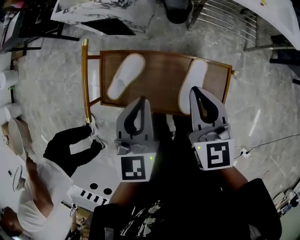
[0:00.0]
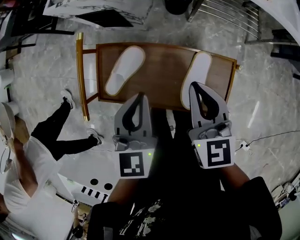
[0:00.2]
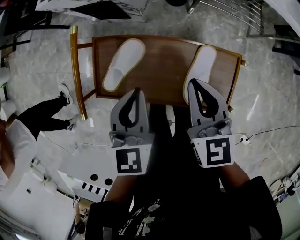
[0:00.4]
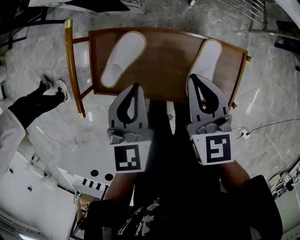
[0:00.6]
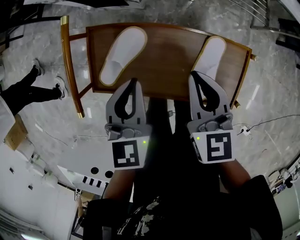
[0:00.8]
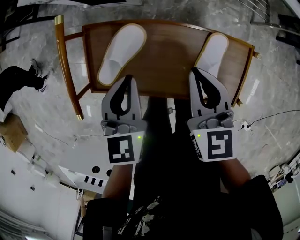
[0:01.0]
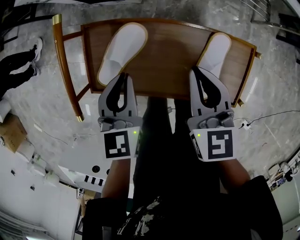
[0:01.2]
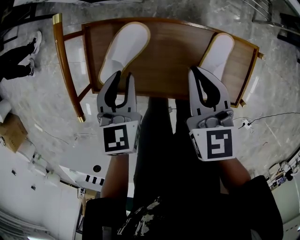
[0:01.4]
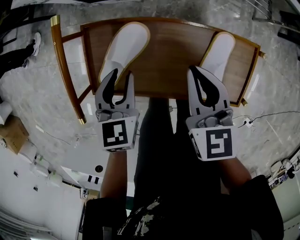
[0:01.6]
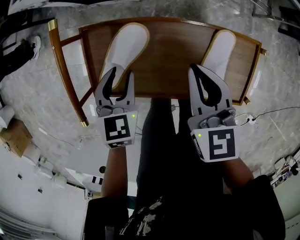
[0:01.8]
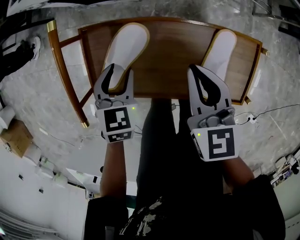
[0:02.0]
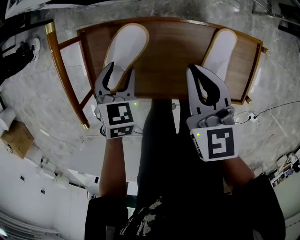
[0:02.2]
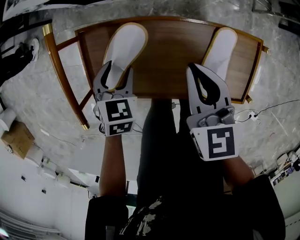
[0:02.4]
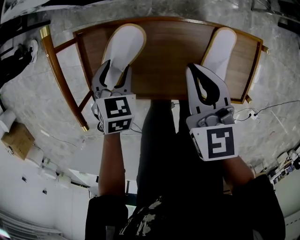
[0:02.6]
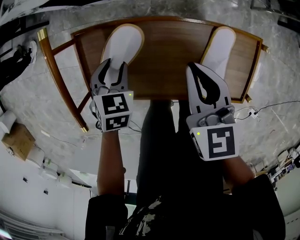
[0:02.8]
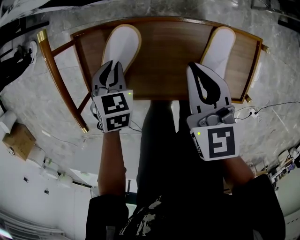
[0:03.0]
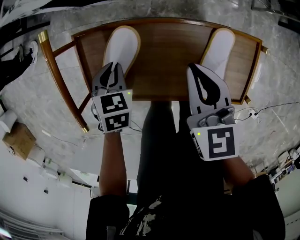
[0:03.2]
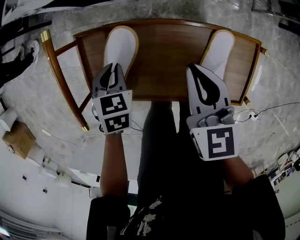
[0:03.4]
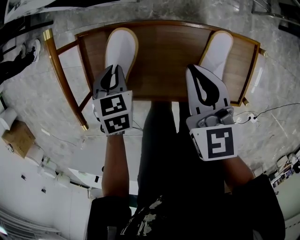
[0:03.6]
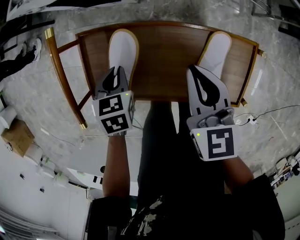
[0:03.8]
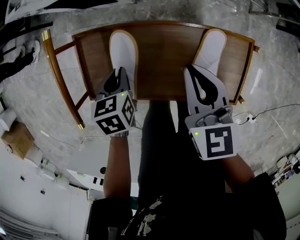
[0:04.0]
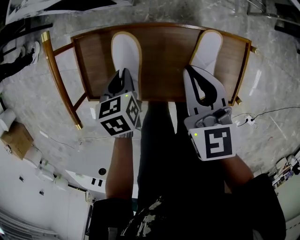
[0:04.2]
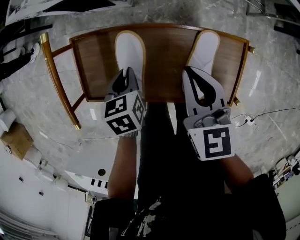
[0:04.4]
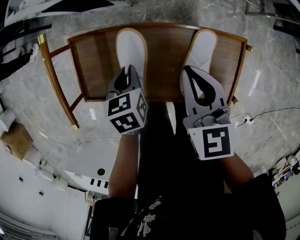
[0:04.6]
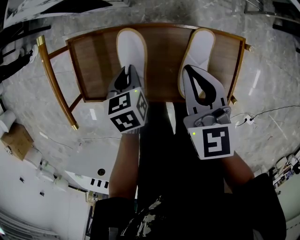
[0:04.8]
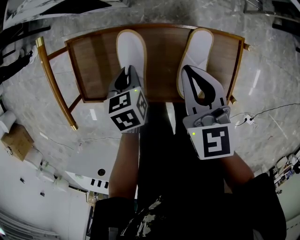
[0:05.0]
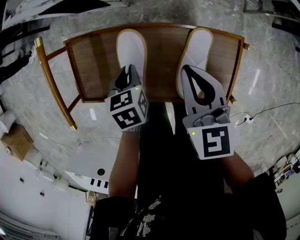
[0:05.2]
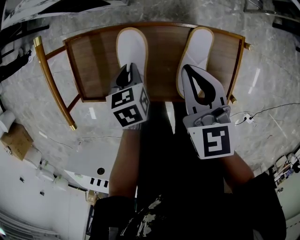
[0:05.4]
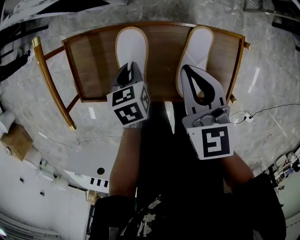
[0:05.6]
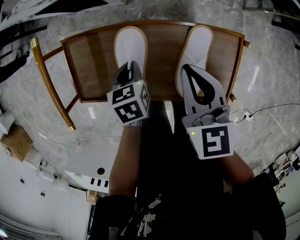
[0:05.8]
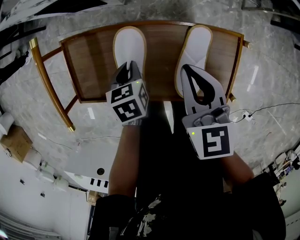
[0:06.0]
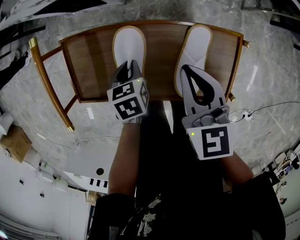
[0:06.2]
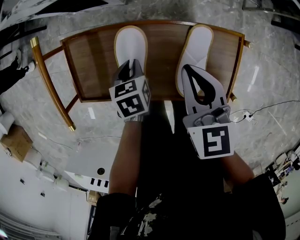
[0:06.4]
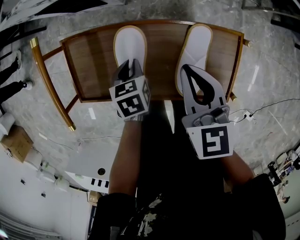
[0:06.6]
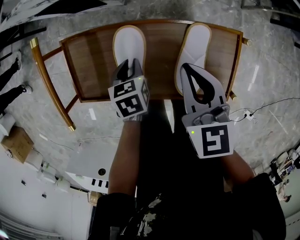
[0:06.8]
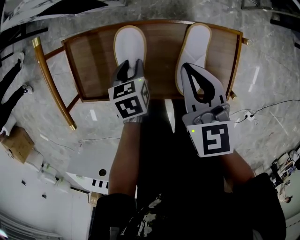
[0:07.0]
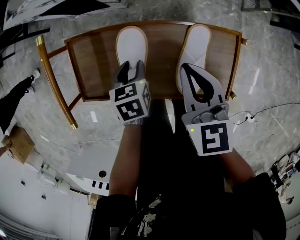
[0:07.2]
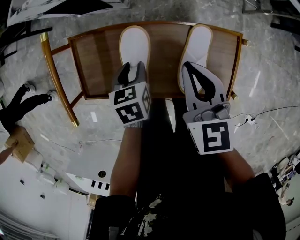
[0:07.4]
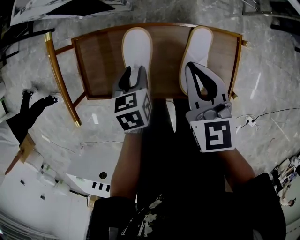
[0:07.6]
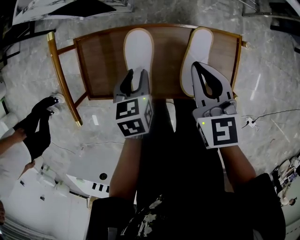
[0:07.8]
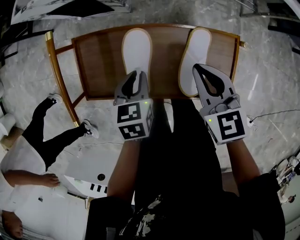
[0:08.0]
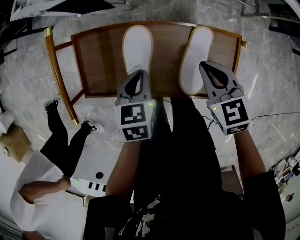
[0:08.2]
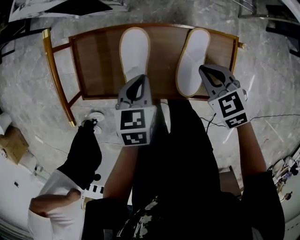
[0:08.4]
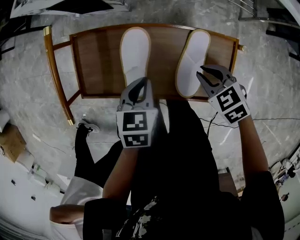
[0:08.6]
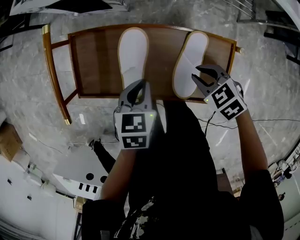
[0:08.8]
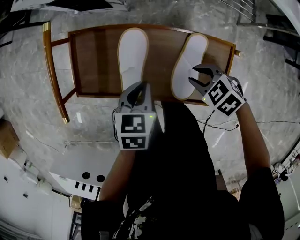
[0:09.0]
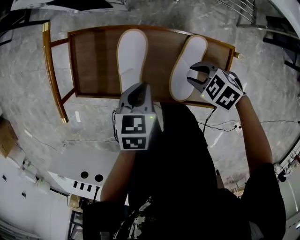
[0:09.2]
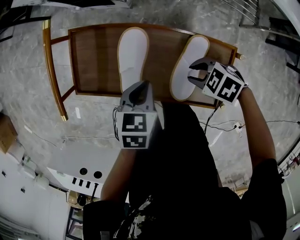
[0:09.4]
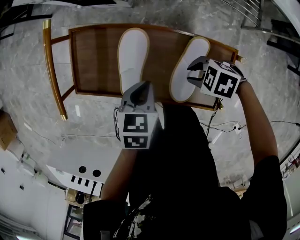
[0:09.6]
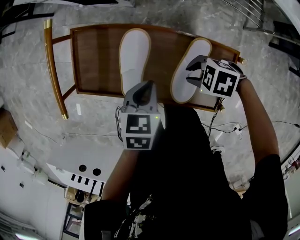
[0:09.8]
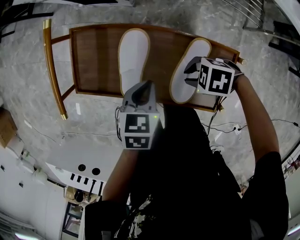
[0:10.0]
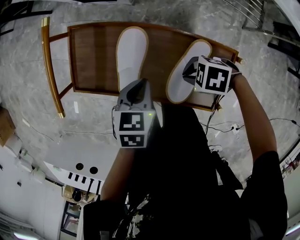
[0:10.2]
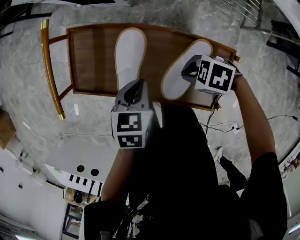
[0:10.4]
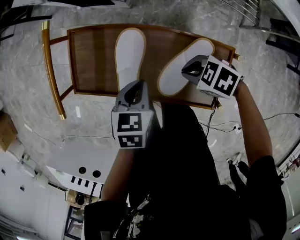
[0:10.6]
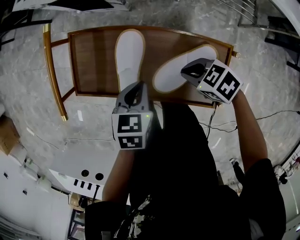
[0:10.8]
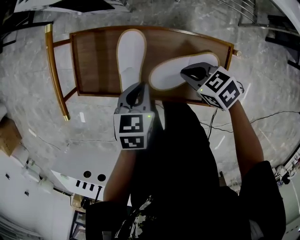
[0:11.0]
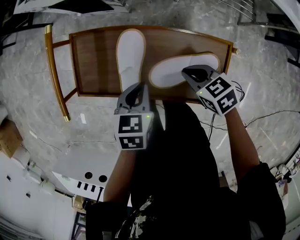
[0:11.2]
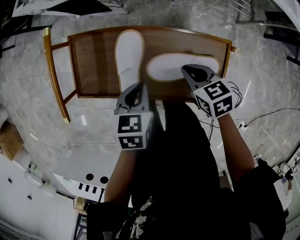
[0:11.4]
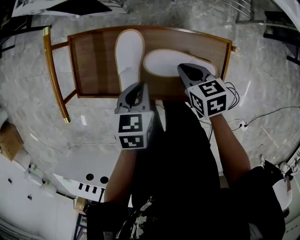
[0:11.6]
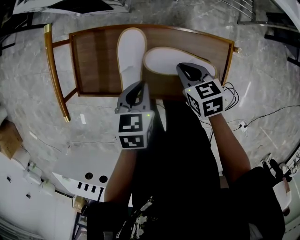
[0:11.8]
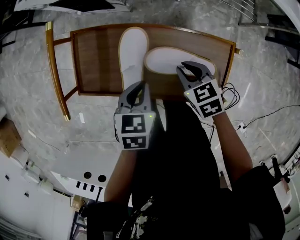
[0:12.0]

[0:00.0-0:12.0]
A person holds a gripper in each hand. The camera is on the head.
0:00.0 to 0:01.6: The right gripper moves downward and to the left, roughly 15 cm. The left gripper travels downward and to the left by some 20 cm, changes its angle by roughly 20 degrees, and opens up.
0:01.6 to 0:03.0: The left gripper moves downward, some 10 cm, swivels about 20 degrees, and closes its fingers.
0:03.0 to 0:04.4: The left gripper is displaced to the right by approximately 5 cm, and swivels roughly 30 degrees.
0:04.4 to 0:06.0: The left gripper ends up approximately 5 cm from where it was.
0:06.0 to 0:07.6: The left gripper opens up.
0:07.6 to 0:09.0: The left gripper changes place by roughly 5 cm, and closes. The right gripper moves downward, some 15 cm, angles its fingers downward, by about 30 degrees, and opens its fingers.
0:09.0 to 0:10.4: The right gripper rotates approximately 30 degrees, and closes.
0:10.4 to 0:12.0: The right gripper changes its angle by approximately 60 degrees.

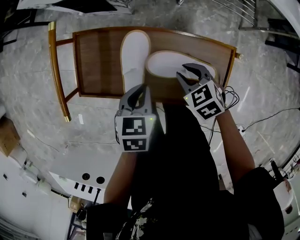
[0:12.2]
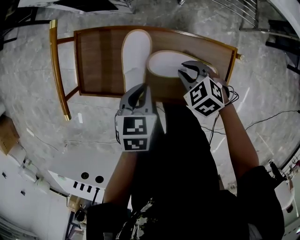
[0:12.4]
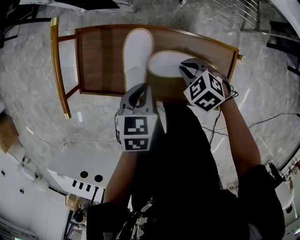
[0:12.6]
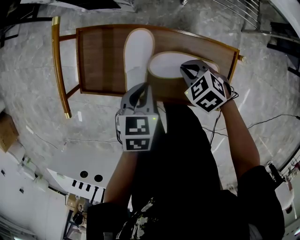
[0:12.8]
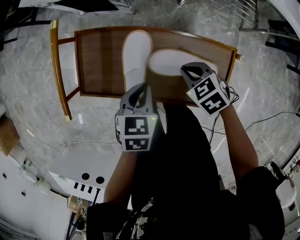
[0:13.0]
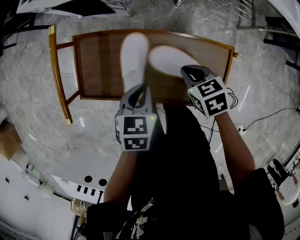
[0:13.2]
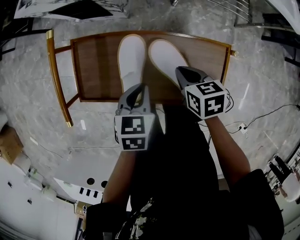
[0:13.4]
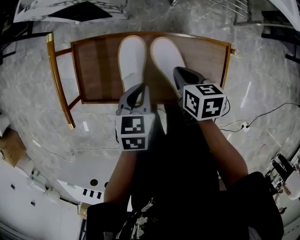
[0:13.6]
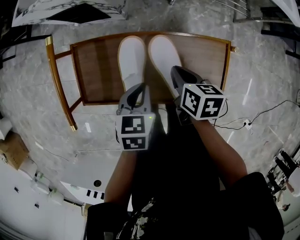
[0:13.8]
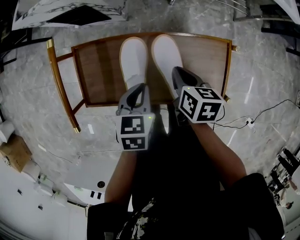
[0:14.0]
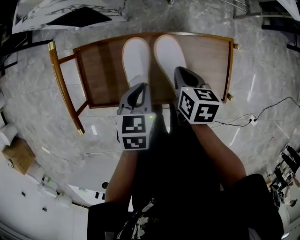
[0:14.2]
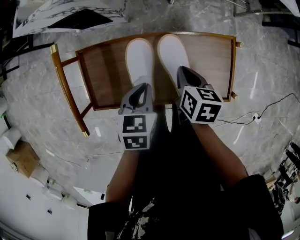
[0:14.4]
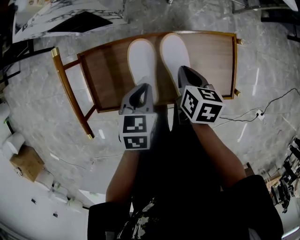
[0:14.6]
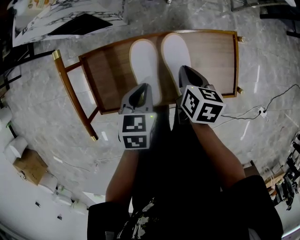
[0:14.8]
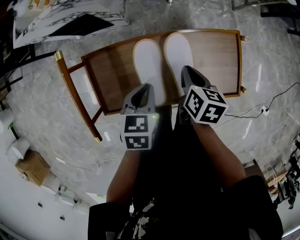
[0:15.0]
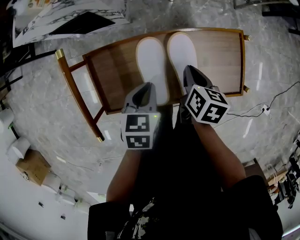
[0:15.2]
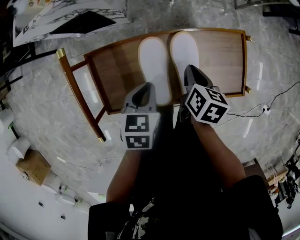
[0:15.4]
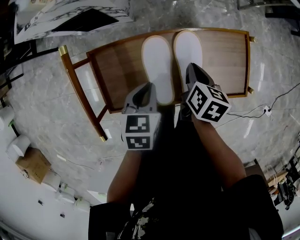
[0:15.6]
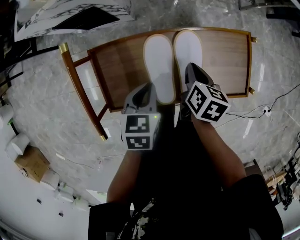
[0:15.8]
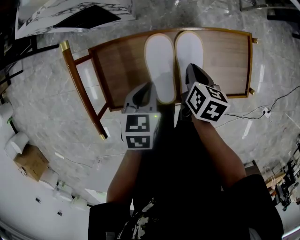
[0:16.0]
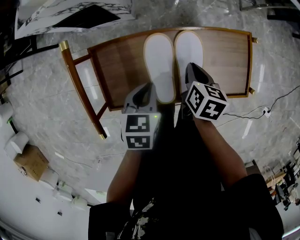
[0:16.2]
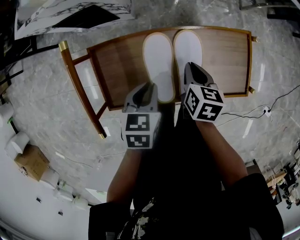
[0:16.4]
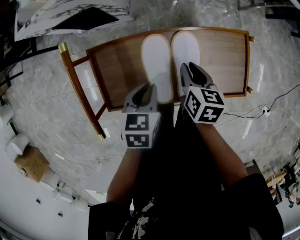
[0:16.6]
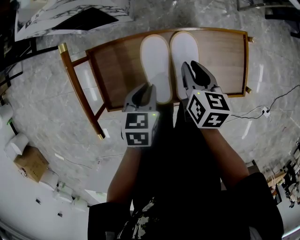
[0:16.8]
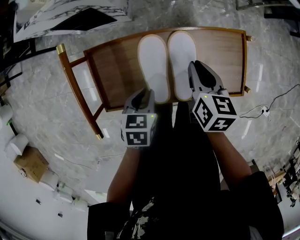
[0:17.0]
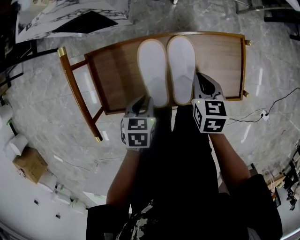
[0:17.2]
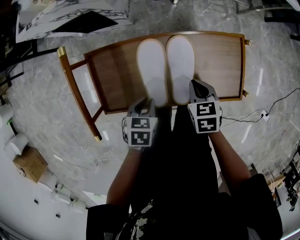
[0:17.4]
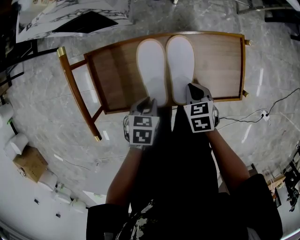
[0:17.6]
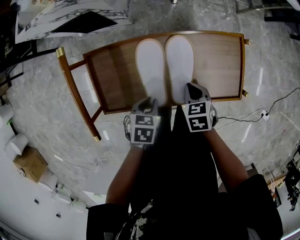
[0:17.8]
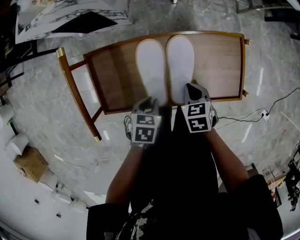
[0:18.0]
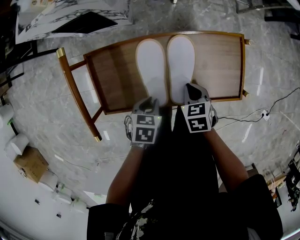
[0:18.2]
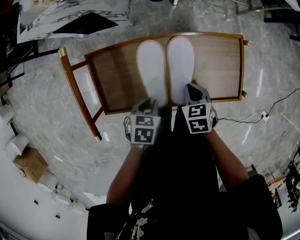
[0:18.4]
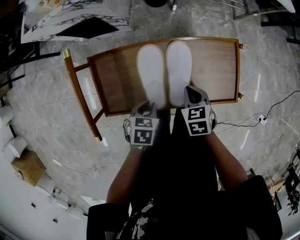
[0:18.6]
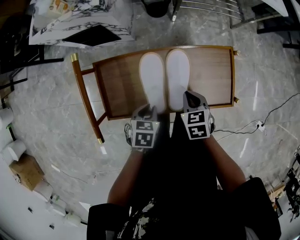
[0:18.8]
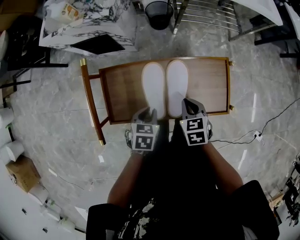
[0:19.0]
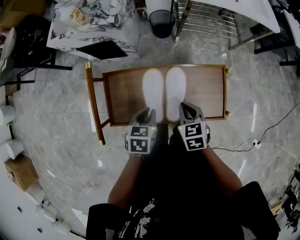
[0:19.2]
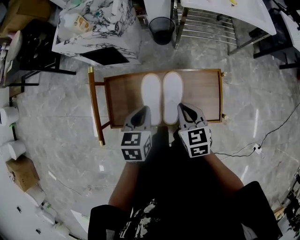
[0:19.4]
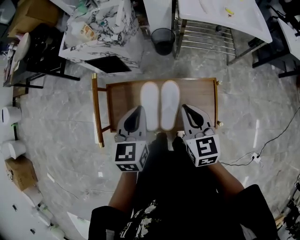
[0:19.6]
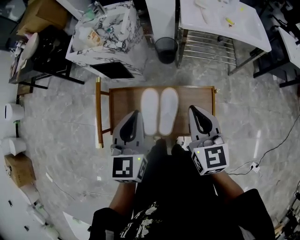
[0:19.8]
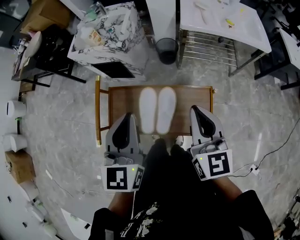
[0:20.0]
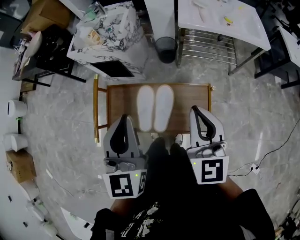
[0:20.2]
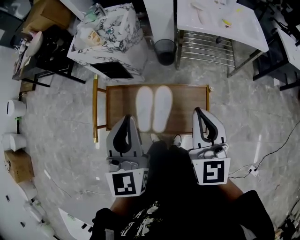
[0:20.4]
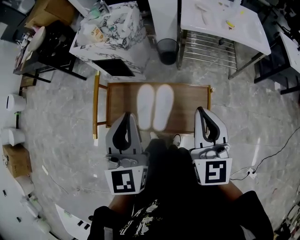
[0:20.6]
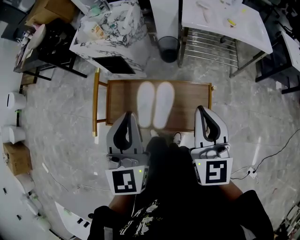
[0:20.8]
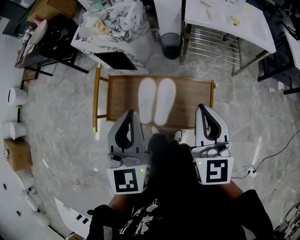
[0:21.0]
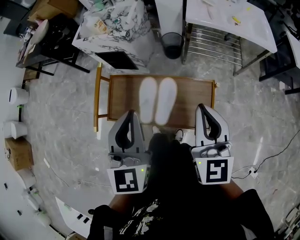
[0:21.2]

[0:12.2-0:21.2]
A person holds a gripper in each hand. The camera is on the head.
0:12.2 to 0:13.8: The right gripper rotates around the line of its fingers by roughly 60 degrees, clockwise from behind, and closes up.
0:13.8 to 0:15.2: The left gripper is displaced to the left by about 5 cm. The right gripper rotates some 20 degrees.
0:15.2 to 0:16.6: The grippers make only small movements.
0:16.6 to 0:18.2: The right gripper is displaced backward and downward by roughly 10 cm, and turns by some 30 degrees, while the left gripper moves downward and backward, approximately 10 cm.
0:18.2 to 0:19.8: Both grippers move upward, about 35 cm. The left gripper tilts its fingers approximately 50 degrees upward, while the right gripper points its fingers roughly 50 degrees further upward.
0:19.8 to 0:21.2: The left gripper goes approximately 10 cm backward and upward; the right gripper is displaced upward and backward by about 5 cm.

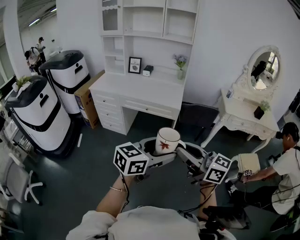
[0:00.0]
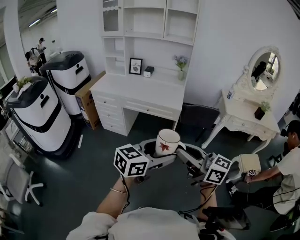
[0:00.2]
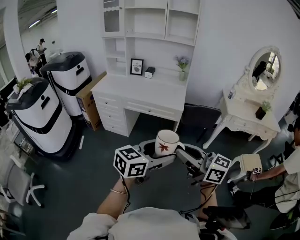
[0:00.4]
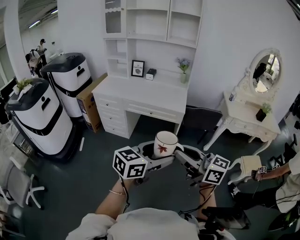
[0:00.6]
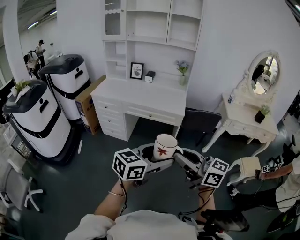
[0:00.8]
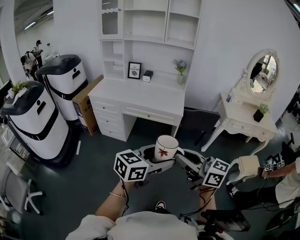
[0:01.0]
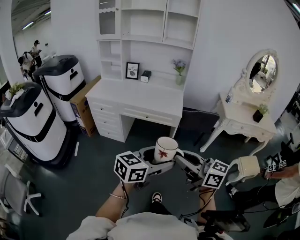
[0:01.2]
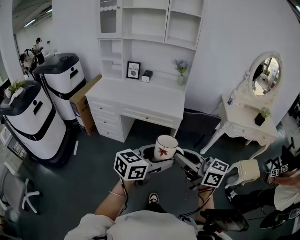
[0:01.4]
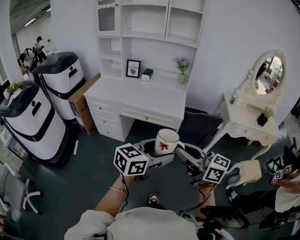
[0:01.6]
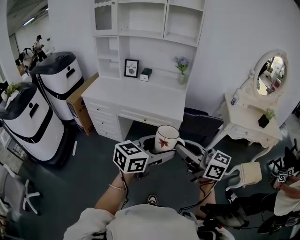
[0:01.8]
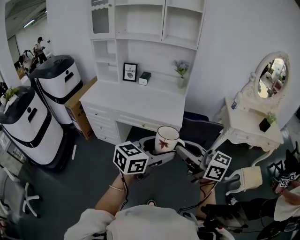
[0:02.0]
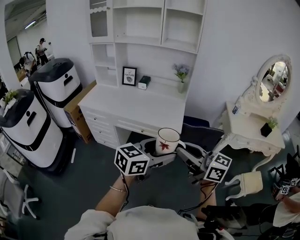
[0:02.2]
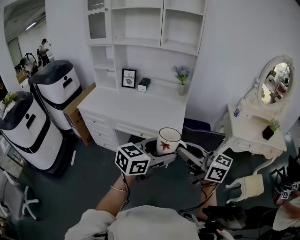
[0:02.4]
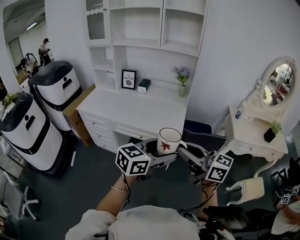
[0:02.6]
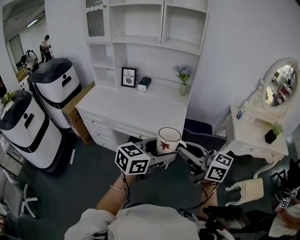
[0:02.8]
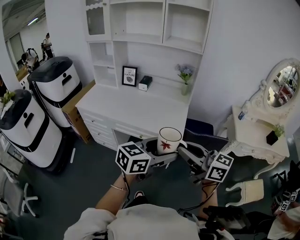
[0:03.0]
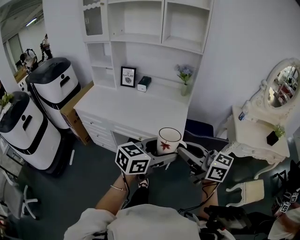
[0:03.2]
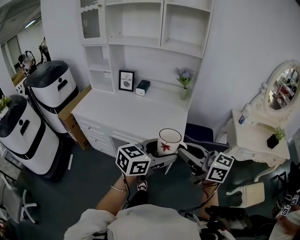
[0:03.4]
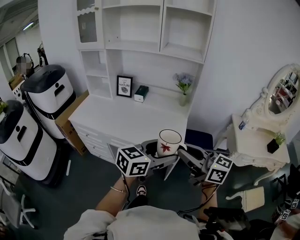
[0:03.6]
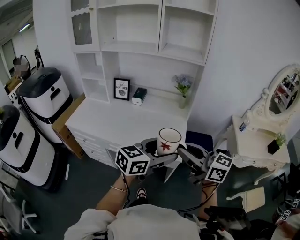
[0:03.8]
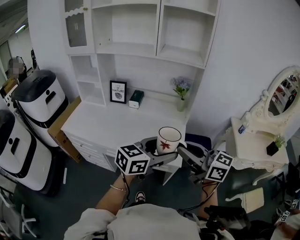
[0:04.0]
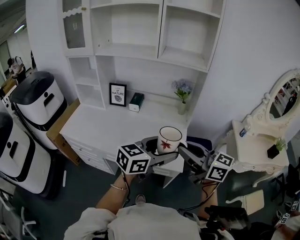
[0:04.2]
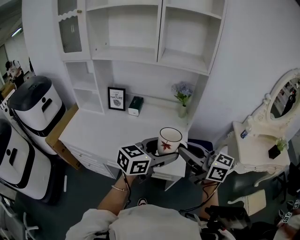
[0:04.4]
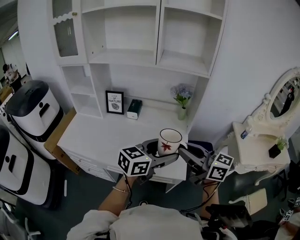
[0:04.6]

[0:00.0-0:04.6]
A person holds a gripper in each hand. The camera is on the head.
0:00.0 to 0:01.6: Both grippers travel together forward, approximately 10 cm.
0:01.6 to 0:03.0: The grippers both shift forward by approximately 20 cm.
0:03.0 to 0:04.6: Both grippers travel together forward, approximately 30 cm.